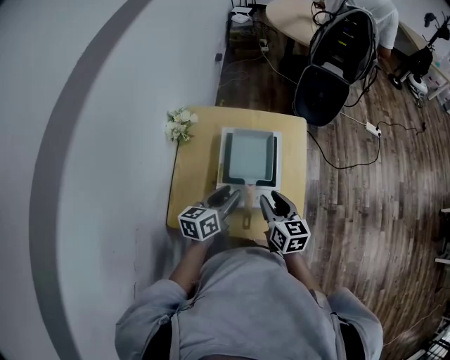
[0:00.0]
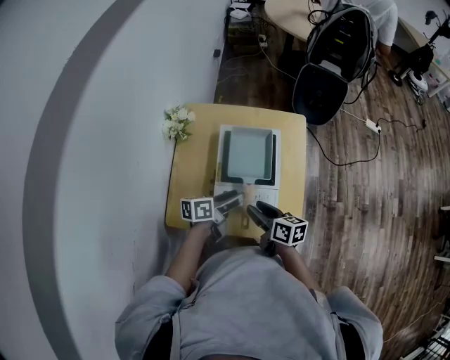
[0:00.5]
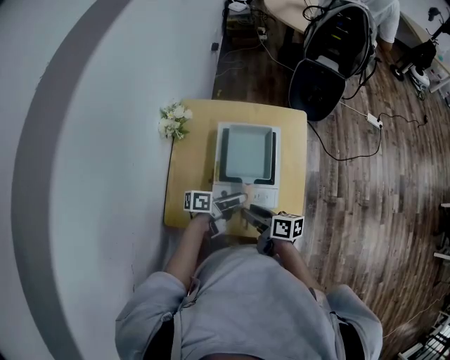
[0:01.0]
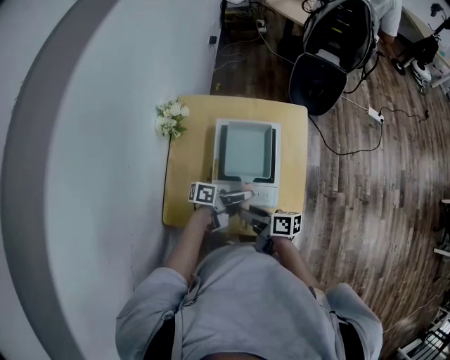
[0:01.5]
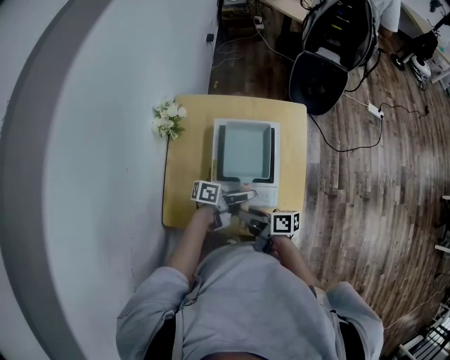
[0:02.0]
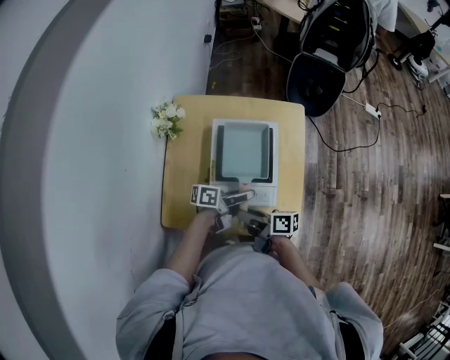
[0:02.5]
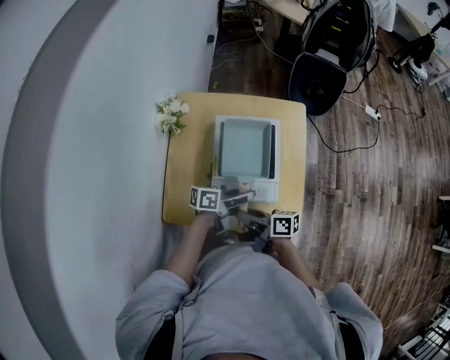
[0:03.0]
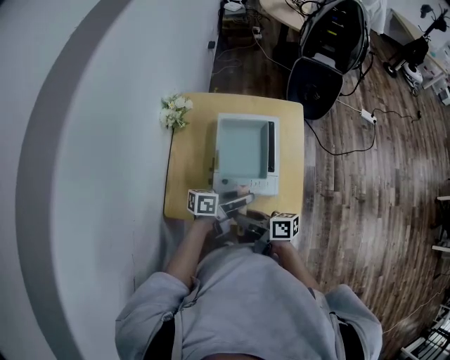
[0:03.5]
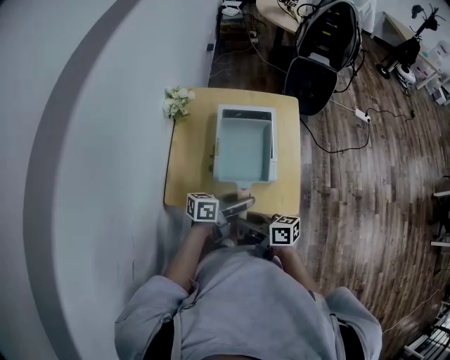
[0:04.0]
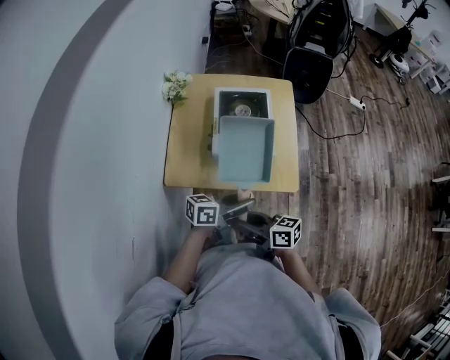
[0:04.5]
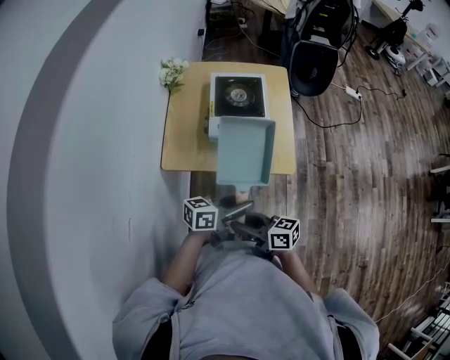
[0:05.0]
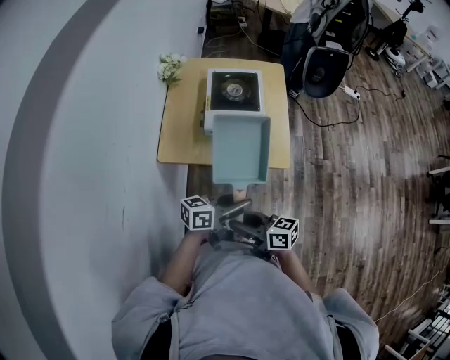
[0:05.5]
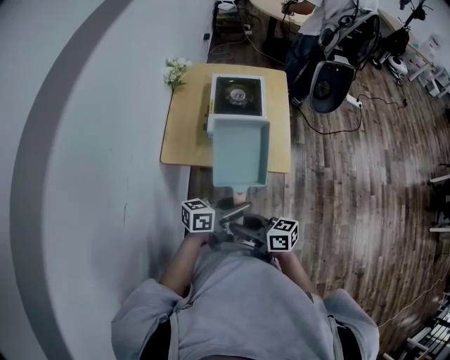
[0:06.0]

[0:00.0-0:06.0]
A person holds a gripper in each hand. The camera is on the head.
0:00.0 to 0:02.0: The right gripper ends up roughly 10 cm from where it was, and rotates approximately 60 degrees. The left gripper goes roughly 10 cm downward, and turns by roughly 50 degrees.
0:02.0 to 0:04.0: The left gripper shifts by some 15 cm, and changes its angle by roughly 20 degrees; the right gripper ends up approximately 15 cm from where it was.
0:04.0 to 0:06.0: The right gripper ends up approximately 20 cm from where it was; the left gripper ends up about 20 cm from where it was.

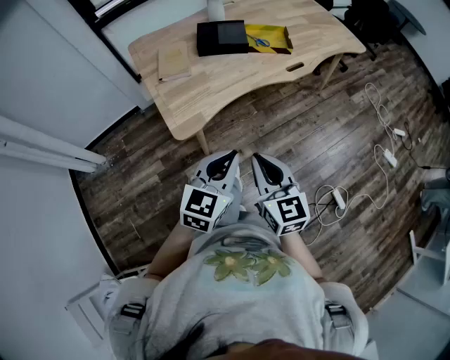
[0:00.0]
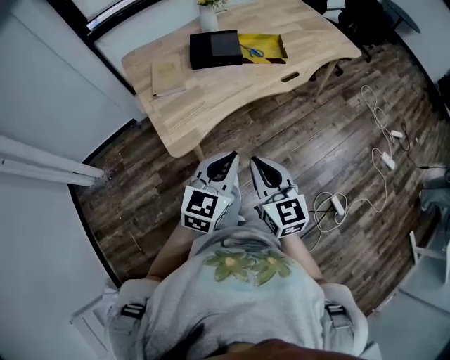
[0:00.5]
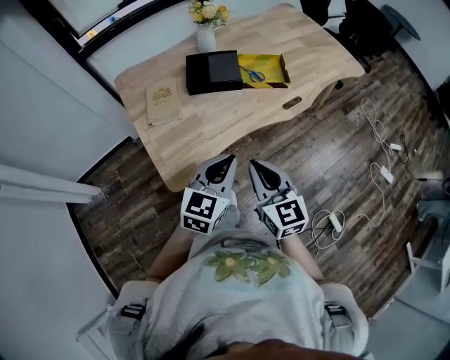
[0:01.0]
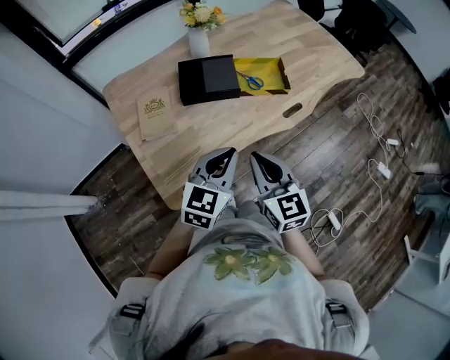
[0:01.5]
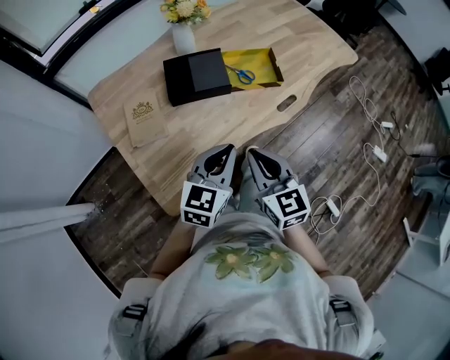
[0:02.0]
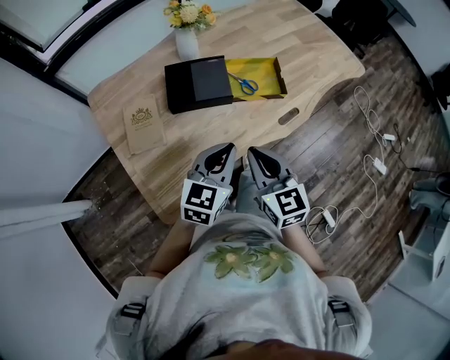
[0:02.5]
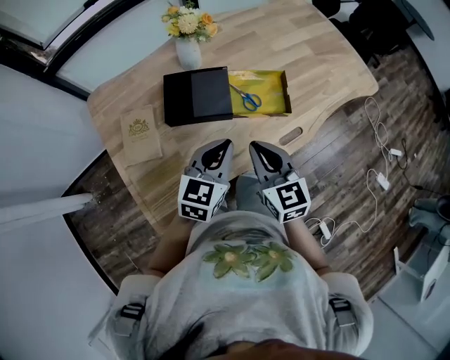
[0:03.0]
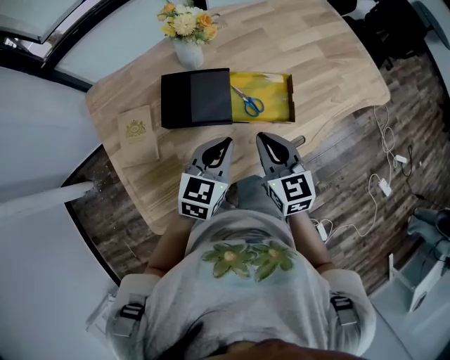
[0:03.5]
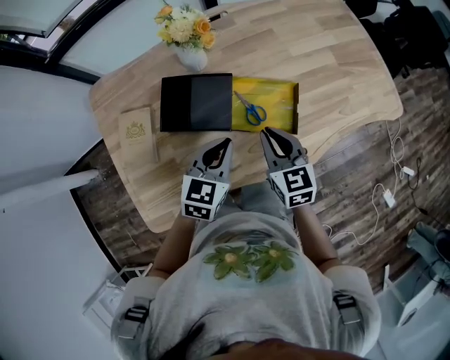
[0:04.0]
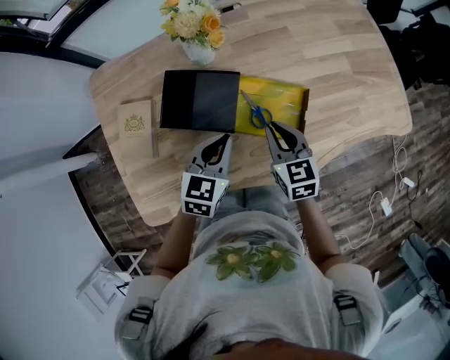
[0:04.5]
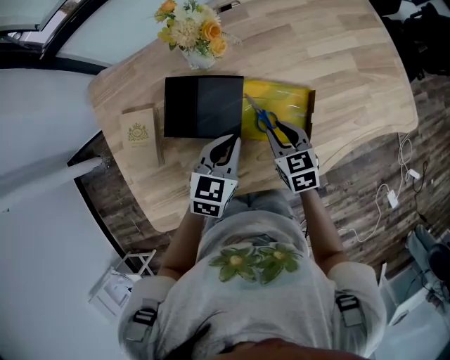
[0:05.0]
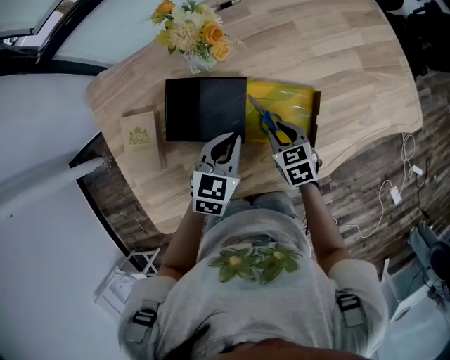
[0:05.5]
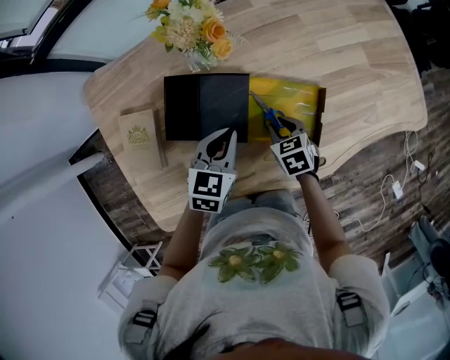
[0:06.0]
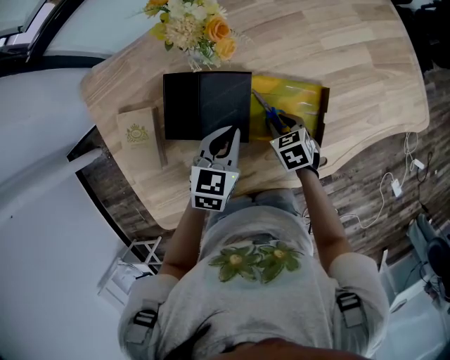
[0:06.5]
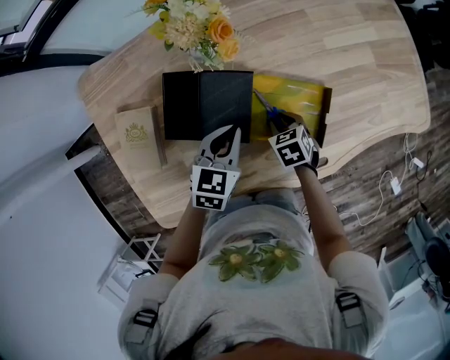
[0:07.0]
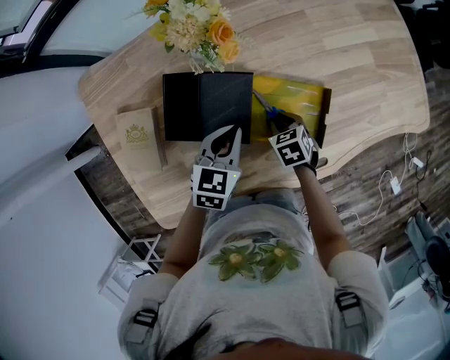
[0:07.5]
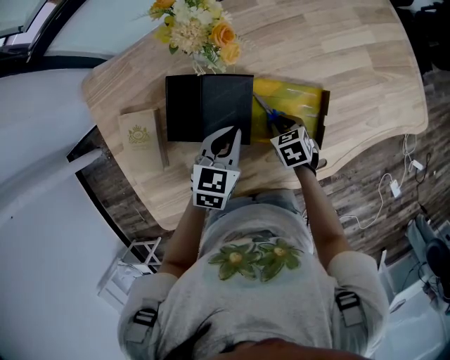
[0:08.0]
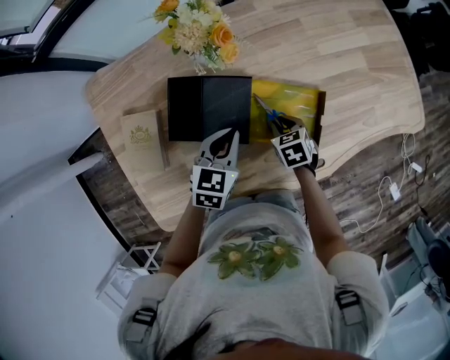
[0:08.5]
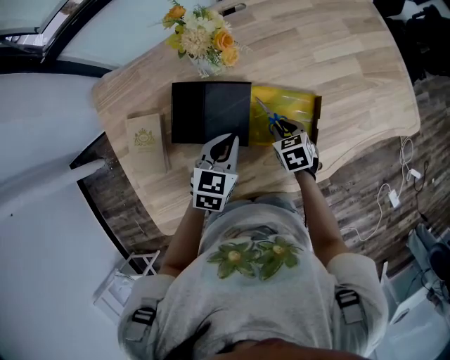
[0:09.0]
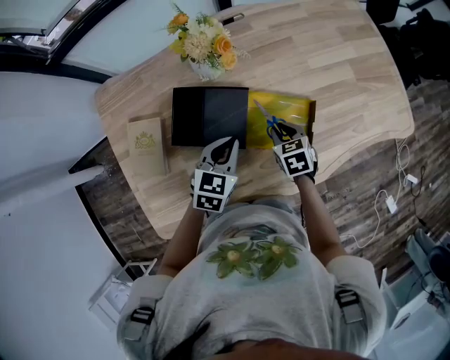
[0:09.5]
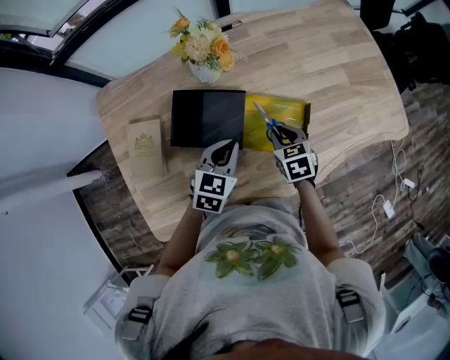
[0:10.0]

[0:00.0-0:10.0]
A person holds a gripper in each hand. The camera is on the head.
0:00.0 to 0:02.0: Both grippers travel together forward, approximately 35 cm.
0:02.0 to 0:04.0: Both grippers travel together forward, about 30 cm. The left gripper rotates approximately 20 degrees.
0:04.0 to 0:06.0: The right gripper travels downward by approximately 20 cm, tilts its fingers some 30 degrees downward, and opens up; the left gripper shifts some 10 cm forward and downward.
0:06.0 to 0:08.0: The grippers make only small movements.
0:08.0 to 0:10.0: The right gripper moves upward, roughly 10 cm. The left gripper ends up approximately 5 cm from where it was.

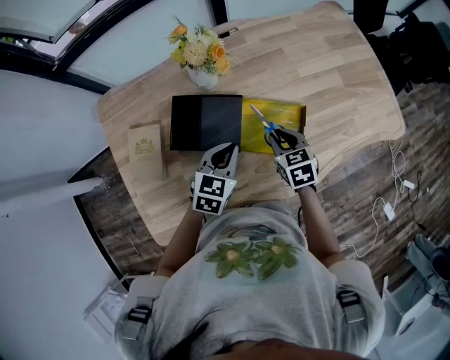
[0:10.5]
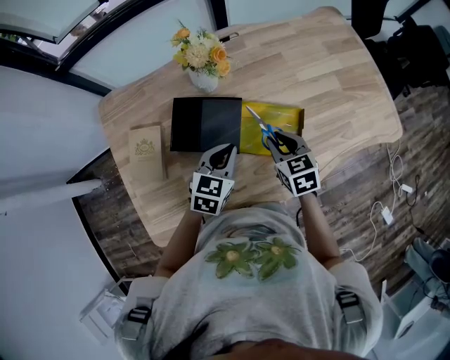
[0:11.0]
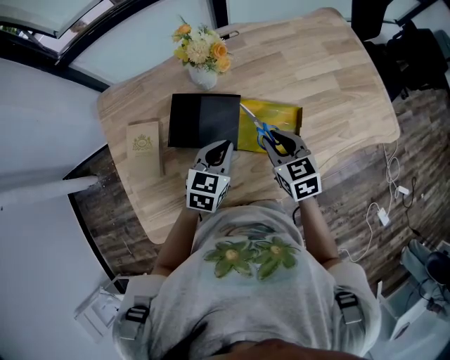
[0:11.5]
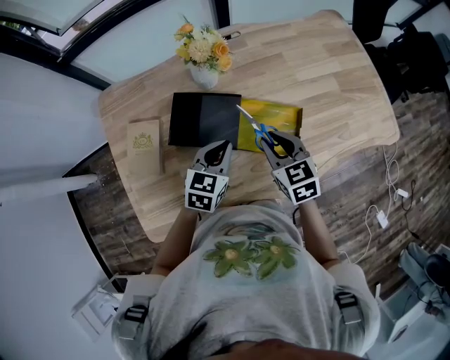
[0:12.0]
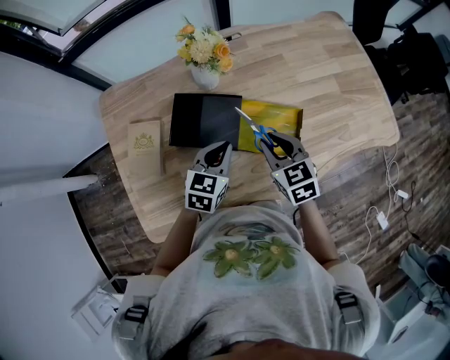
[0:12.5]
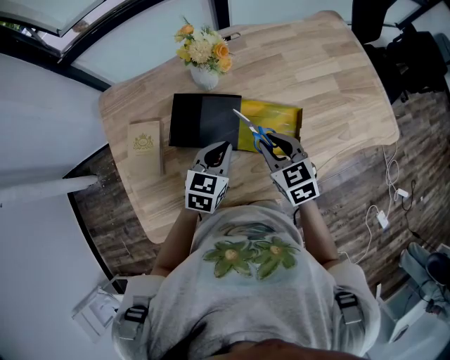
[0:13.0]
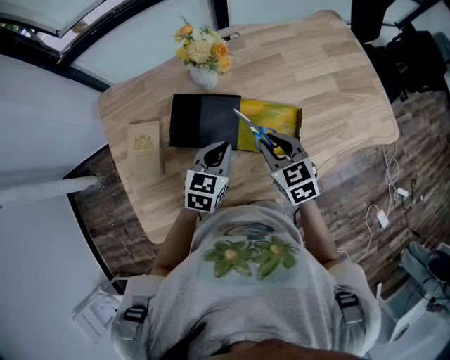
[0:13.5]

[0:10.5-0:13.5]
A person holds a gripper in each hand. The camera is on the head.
0:10.5 to 0:12.0: The right gripper travels upward by roughly 10 cm.
0:12.0 to 0:13.5: Both grippers stay put.

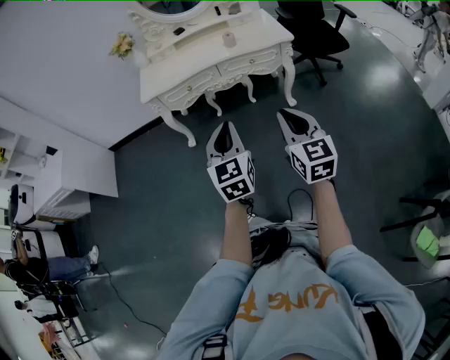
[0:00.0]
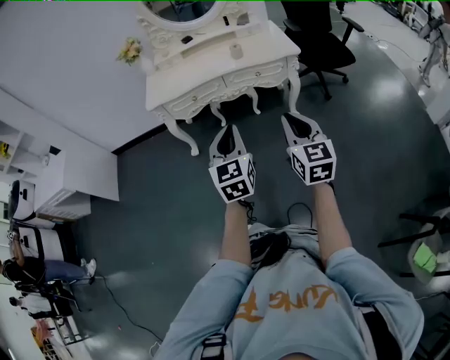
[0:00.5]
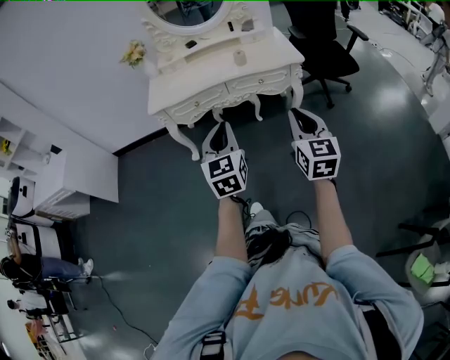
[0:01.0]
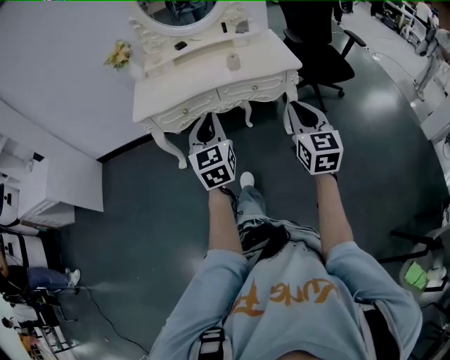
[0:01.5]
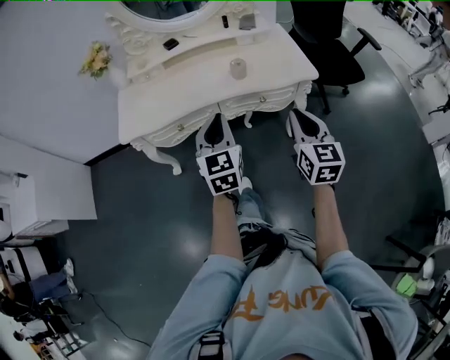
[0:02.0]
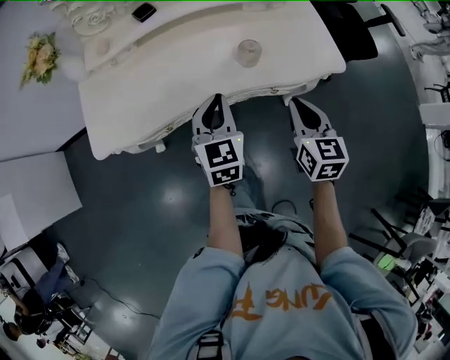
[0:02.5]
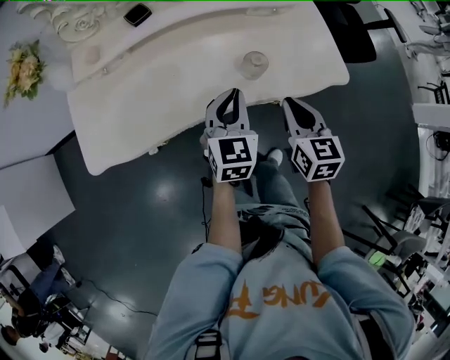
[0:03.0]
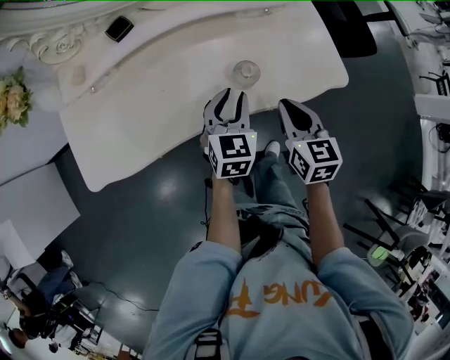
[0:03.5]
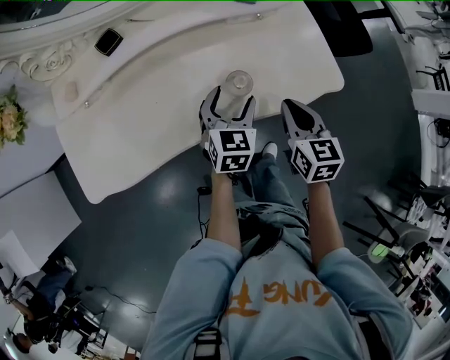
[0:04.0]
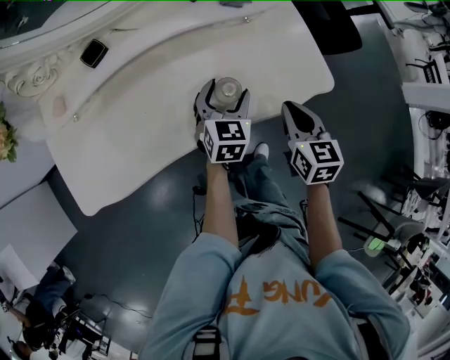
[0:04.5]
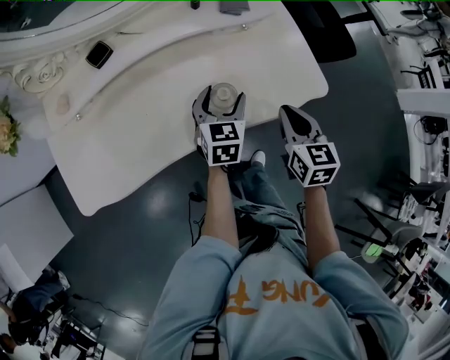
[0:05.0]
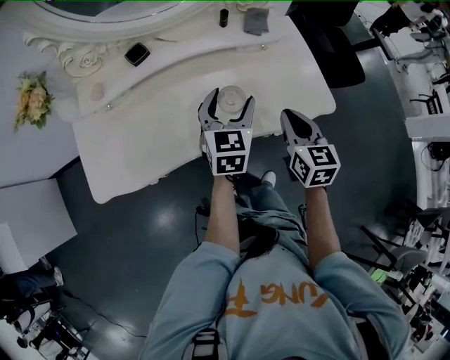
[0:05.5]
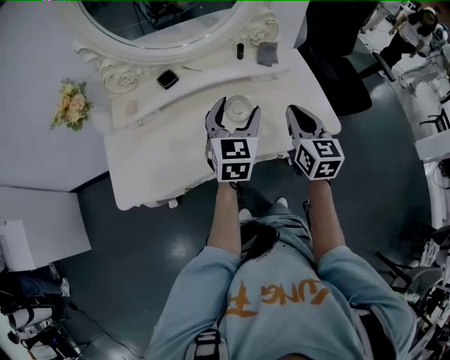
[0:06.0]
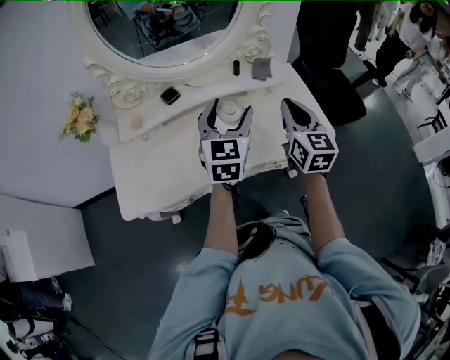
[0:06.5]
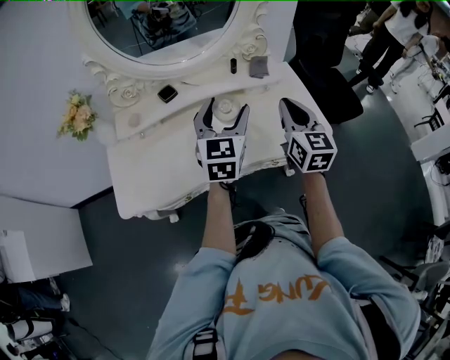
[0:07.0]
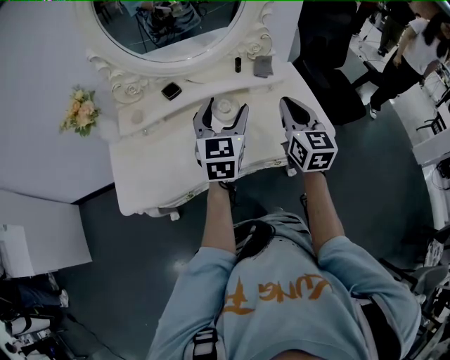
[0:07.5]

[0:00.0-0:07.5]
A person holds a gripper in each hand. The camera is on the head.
0:00.0 to 0:02.0: Both grippers move forward, roughly 35 cm.
0:02.0 to 0:04.0: The grippers both shift forward and downward by about 35 cm. The right gripper changes its angle by about 20 degrees. The left gripper changes its angle by roughly 30 degrees, and opens its fingers.
0:04.0 to 0:05.5: The left gripper goes roughly 10 cm upward. The right gripper moves upward, approximately 5 cm.
0:05.5 to 0:07.5: The right gripper moves upward, approximately 15 cm. The left gripper shifts approximately 15 cm upward and to the left.
